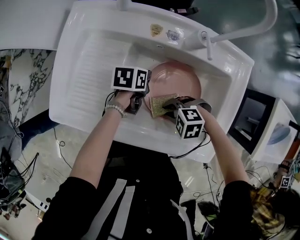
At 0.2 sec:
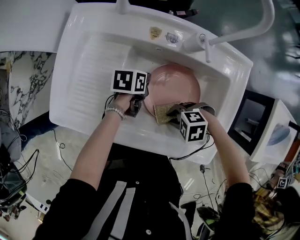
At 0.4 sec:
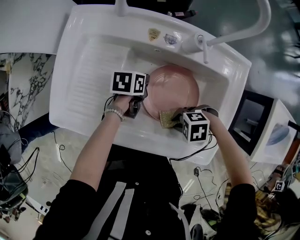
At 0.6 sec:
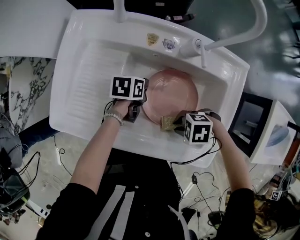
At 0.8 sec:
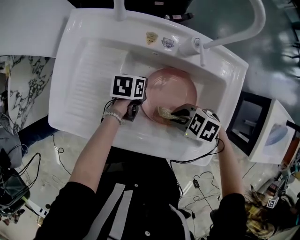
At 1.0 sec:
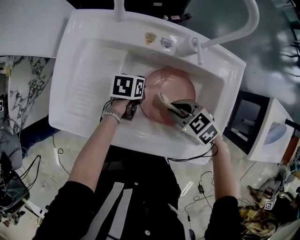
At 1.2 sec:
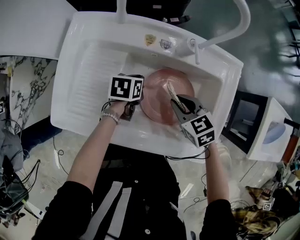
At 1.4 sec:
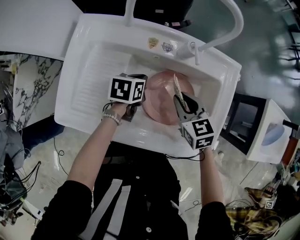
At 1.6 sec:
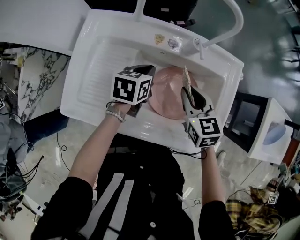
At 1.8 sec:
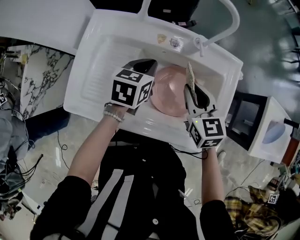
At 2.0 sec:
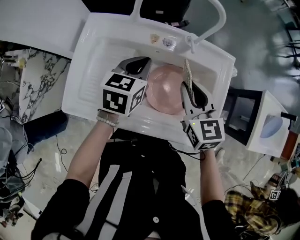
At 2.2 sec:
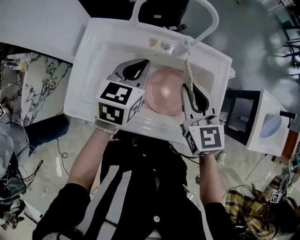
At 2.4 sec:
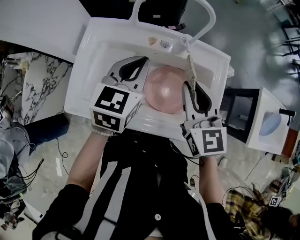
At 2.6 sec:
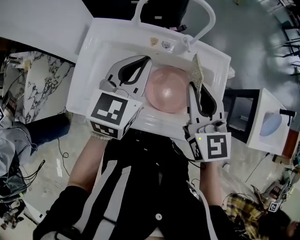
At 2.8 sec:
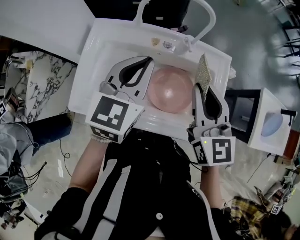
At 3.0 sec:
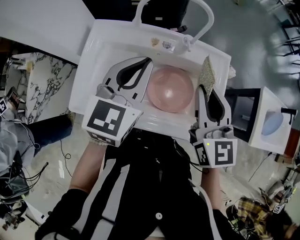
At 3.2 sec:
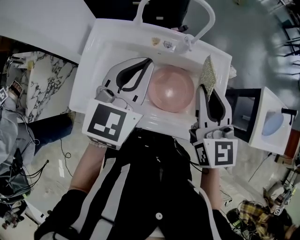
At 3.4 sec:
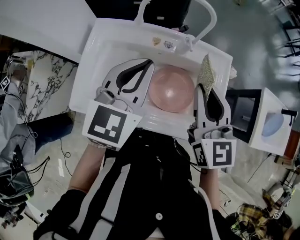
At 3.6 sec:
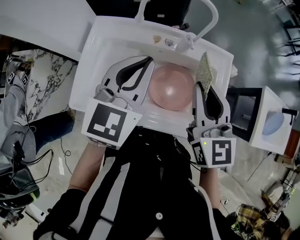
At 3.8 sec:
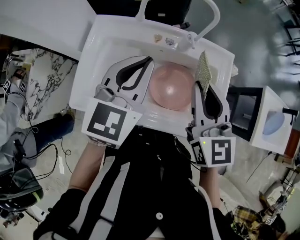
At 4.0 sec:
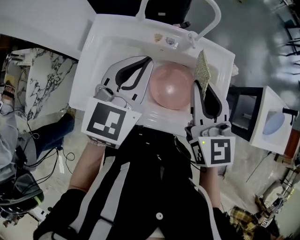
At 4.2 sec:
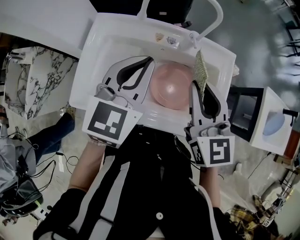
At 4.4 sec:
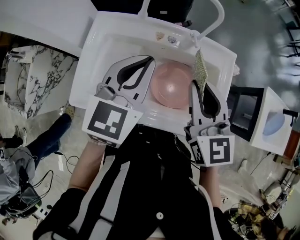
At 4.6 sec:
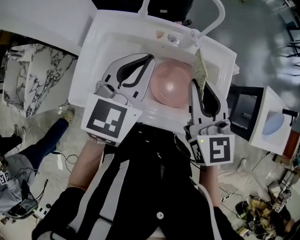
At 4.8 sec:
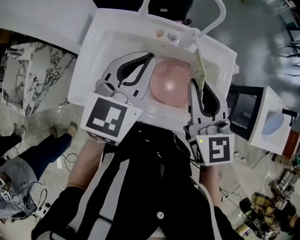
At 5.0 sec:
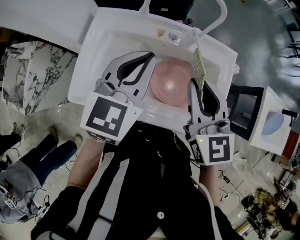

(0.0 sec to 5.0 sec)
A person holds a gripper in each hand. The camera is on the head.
0.0 sec - 1.6 sec: Both grippers travel together upward, about 15 cm. The right gripper changes its angle by about 80 degrees. The left gripper turns by some 20 degrees.
1.6 sec - 3.4 sec: The two grippers go roughly 25 cm upward. The left gripper turns by about 40 degrees; the right gripper swivels roughly 30 degrees.
3.4 sec - 5.0 sec: There are only small adjustments of the grippers.

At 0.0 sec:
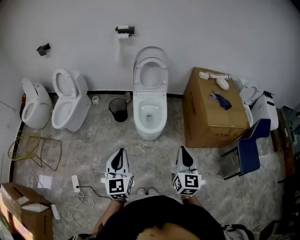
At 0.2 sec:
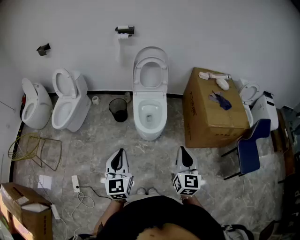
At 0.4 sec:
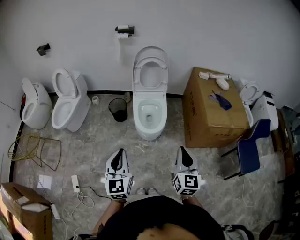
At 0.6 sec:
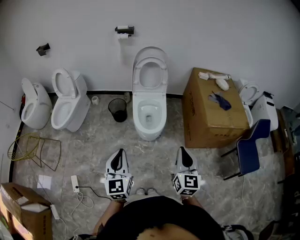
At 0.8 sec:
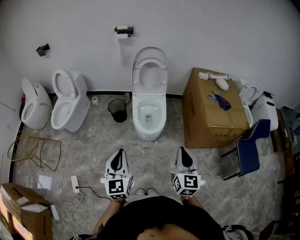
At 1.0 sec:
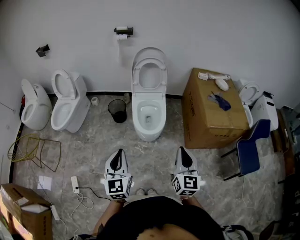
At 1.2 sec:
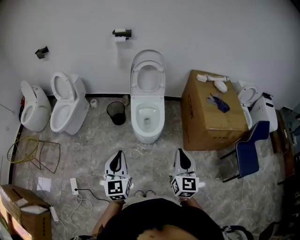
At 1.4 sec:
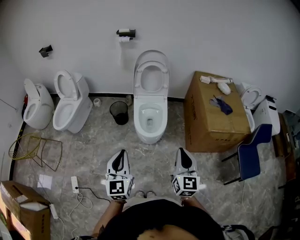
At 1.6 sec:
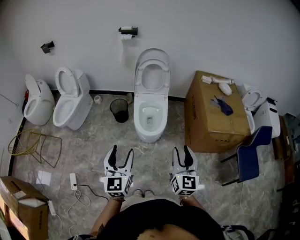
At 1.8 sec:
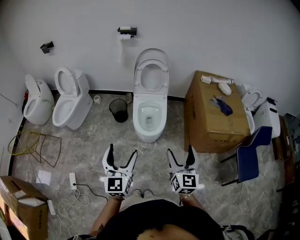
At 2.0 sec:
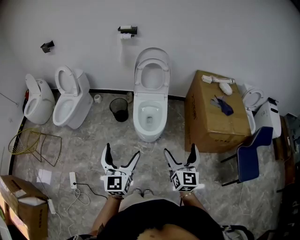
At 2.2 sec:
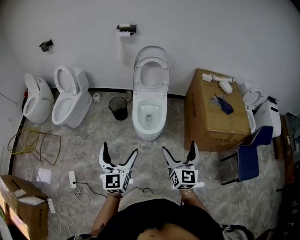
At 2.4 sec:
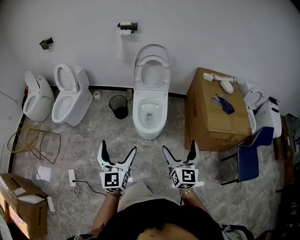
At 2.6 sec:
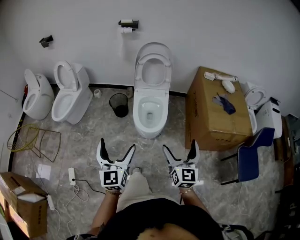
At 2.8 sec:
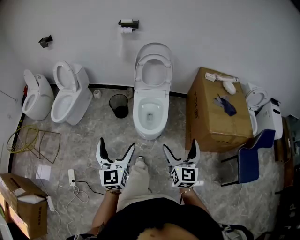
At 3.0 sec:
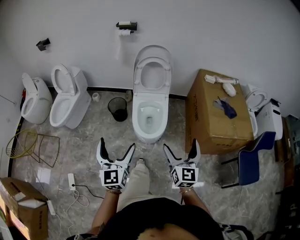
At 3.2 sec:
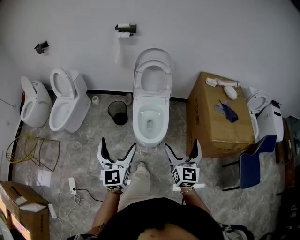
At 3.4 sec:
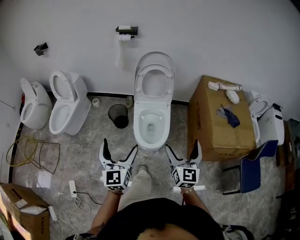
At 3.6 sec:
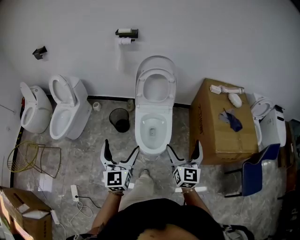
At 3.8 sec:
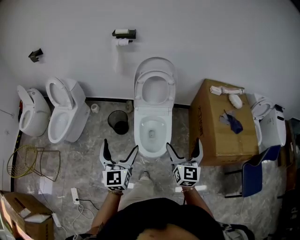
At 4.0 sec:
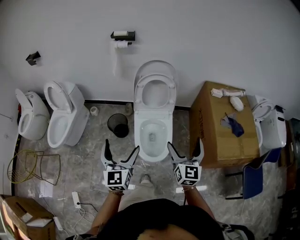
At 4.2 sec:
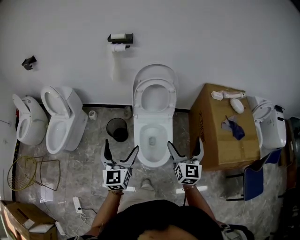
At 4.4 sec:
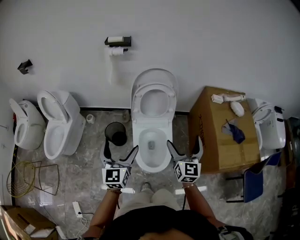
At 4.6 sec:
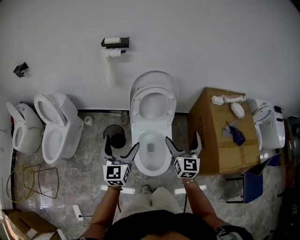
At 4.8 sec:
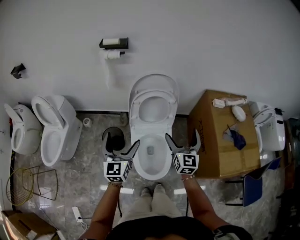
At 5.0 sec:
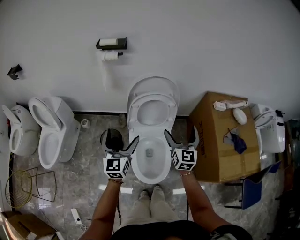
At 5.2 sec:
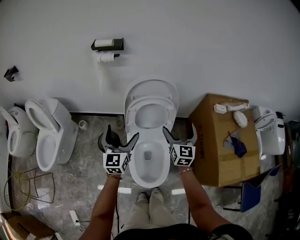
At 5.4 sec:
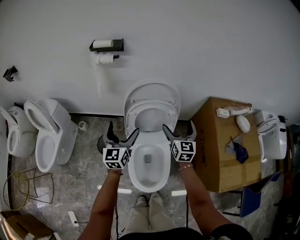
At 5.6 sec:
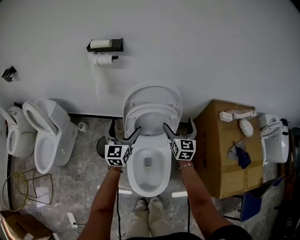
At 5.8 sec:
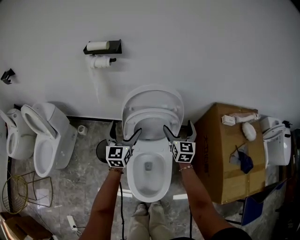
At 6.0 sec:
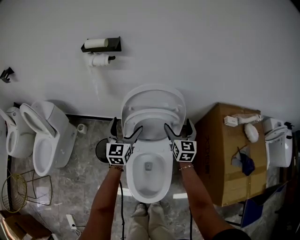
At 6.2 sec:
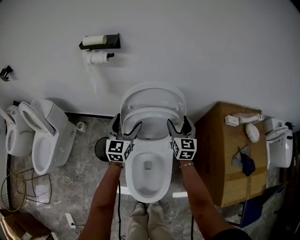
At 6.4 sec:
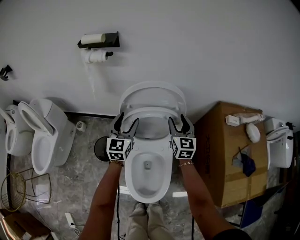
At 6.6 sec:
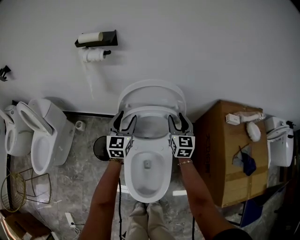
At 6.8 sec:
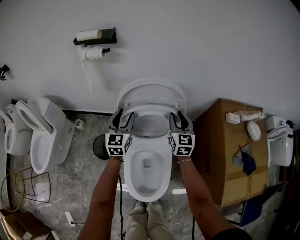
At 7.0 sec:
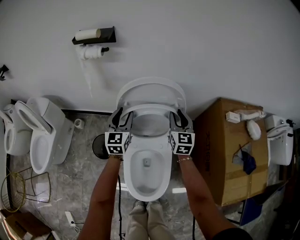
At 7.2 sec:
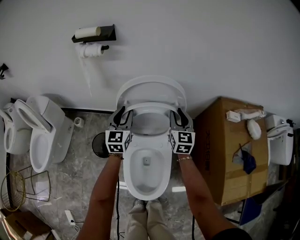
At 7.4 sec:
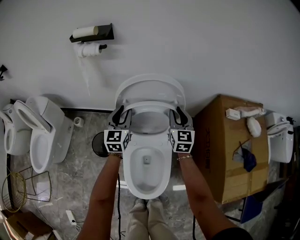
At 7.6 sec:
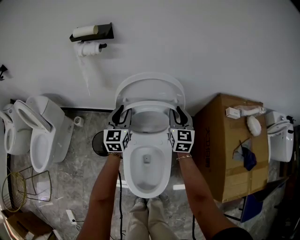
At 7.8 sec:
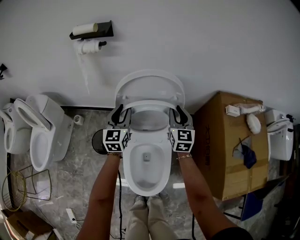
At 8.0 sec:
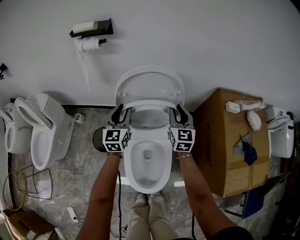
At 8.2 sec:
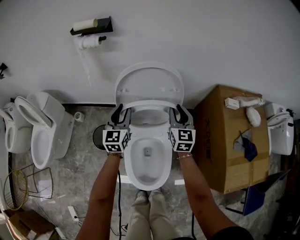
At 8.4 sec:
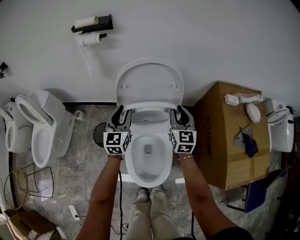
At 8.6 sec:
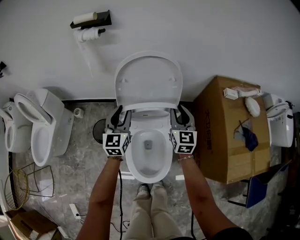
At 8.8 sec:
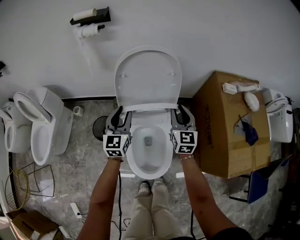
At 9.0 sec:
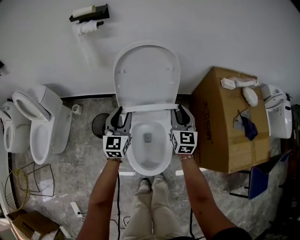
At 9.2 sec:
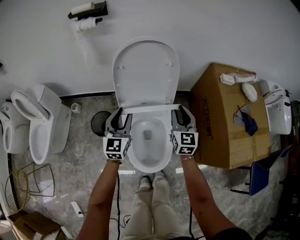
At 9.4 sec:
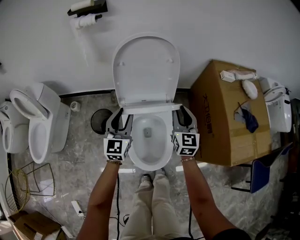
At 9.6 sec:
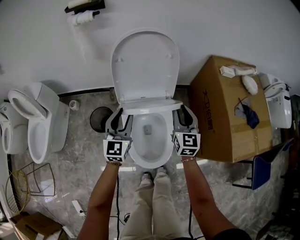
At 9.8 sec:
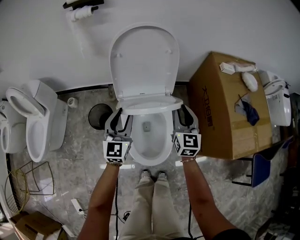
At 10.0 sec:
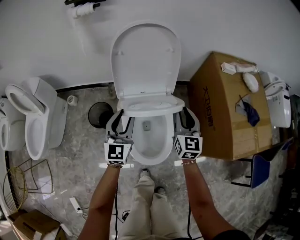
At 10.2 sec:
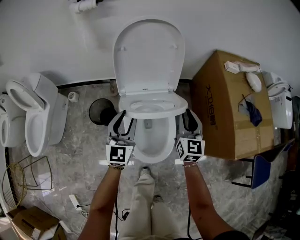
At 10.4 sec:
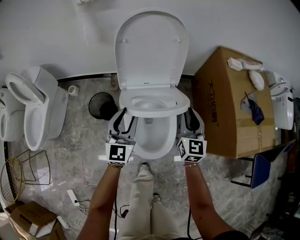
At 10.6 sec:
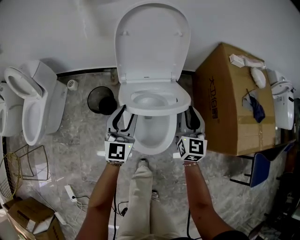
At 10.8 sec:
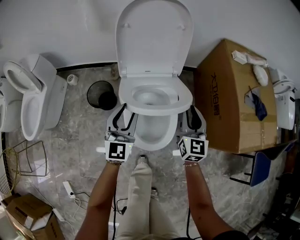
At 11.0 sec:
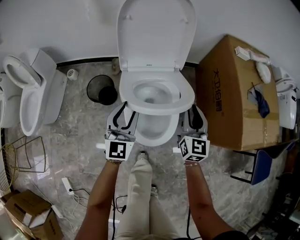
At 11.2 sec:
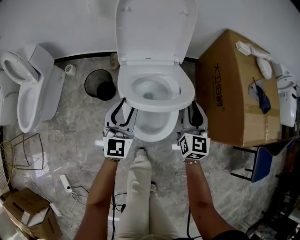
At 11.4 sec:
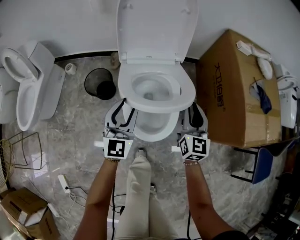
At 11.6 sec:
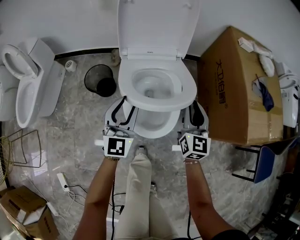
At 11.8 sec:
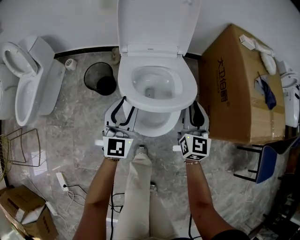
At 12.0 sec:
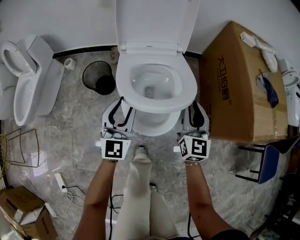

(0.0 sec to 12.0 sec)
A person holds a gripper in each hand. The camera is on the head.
0.0 sec - 1.6 sec: The left gripper opens.
1.6 sec - 3.0 sec: The grippers both shift forward by roughly 10 cm. The right gripper opens up. Meanwhile the left gripper opens.
3.0 sec - 4.4 sec: Both grippers move forward, approximately 30 cm.
4.4 sec - 6.0 sec: The two grippers go approximately 40 cm forward.
6.0 sec - 7.6 sec: The left gripper ends up roughly 5 cm from where it was, and closes; the right gripper closes its fingers.
7.6 sec - 9.0 sec: The grippers both shift backward by about 15 cm.
9.0 sec - 10.4 sec: The left gripper is displaced backward by roughly 10 cm; the right gripper travels backward and downward by approximately 10 cm.
10.4 sec - 12.0 sec: Both grippers travel together backward and downward, roughly 15 cm.

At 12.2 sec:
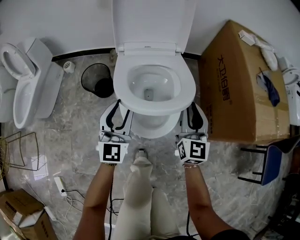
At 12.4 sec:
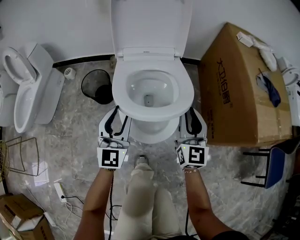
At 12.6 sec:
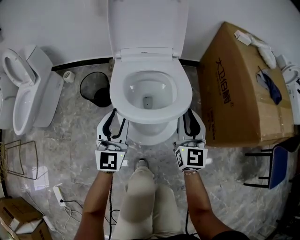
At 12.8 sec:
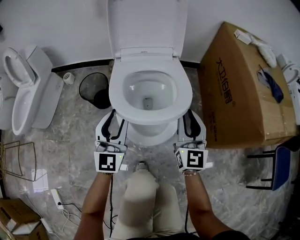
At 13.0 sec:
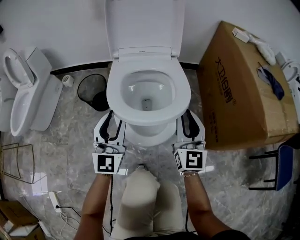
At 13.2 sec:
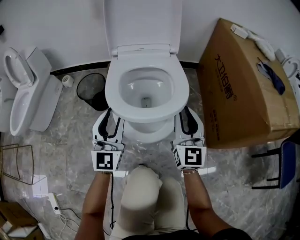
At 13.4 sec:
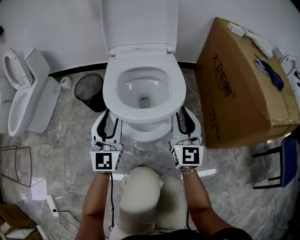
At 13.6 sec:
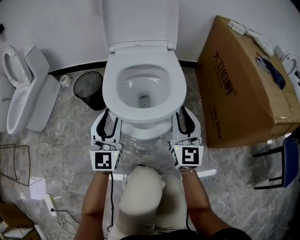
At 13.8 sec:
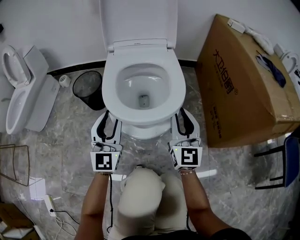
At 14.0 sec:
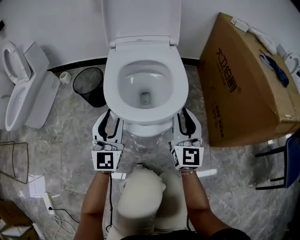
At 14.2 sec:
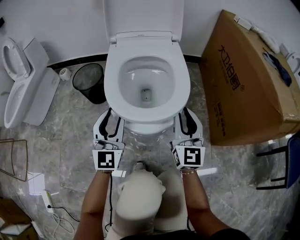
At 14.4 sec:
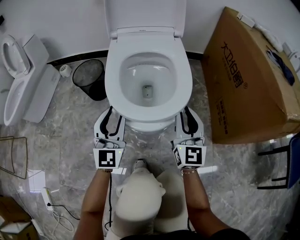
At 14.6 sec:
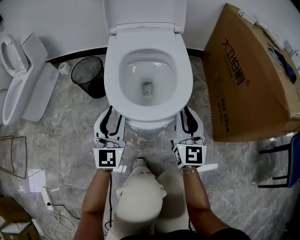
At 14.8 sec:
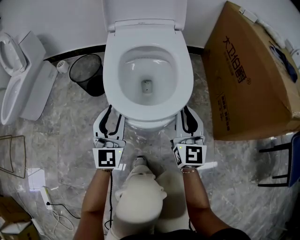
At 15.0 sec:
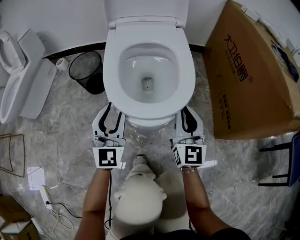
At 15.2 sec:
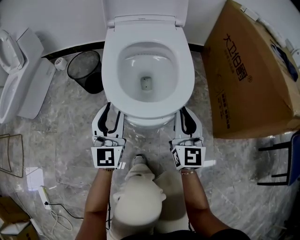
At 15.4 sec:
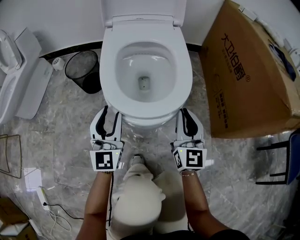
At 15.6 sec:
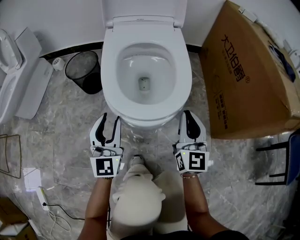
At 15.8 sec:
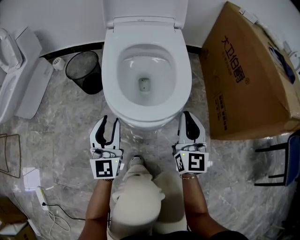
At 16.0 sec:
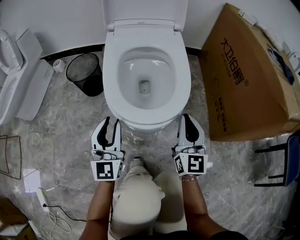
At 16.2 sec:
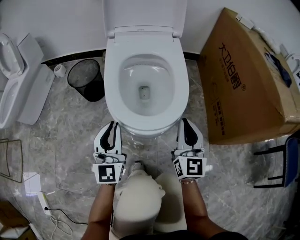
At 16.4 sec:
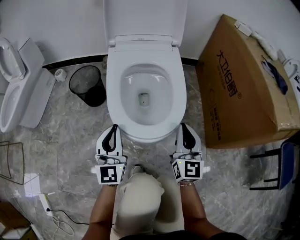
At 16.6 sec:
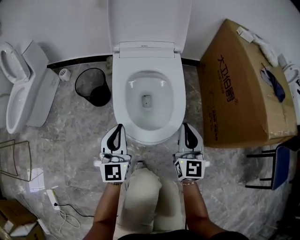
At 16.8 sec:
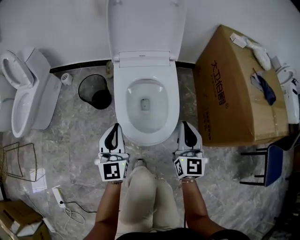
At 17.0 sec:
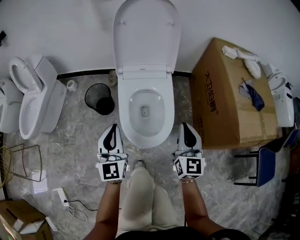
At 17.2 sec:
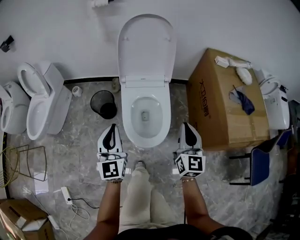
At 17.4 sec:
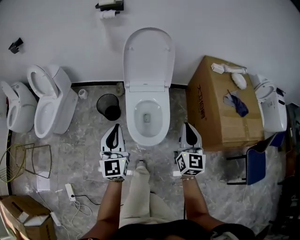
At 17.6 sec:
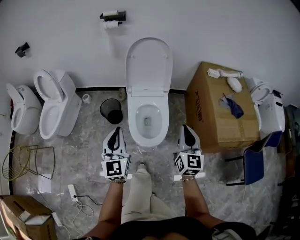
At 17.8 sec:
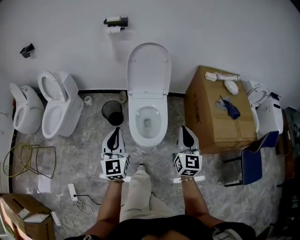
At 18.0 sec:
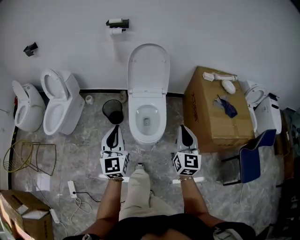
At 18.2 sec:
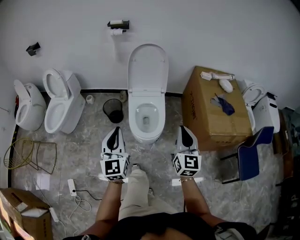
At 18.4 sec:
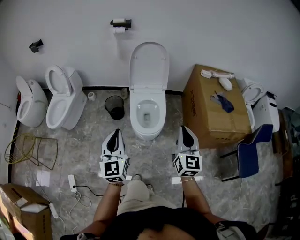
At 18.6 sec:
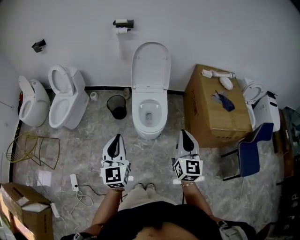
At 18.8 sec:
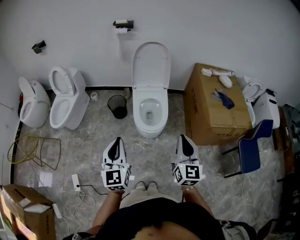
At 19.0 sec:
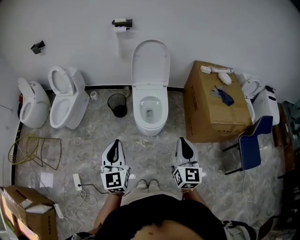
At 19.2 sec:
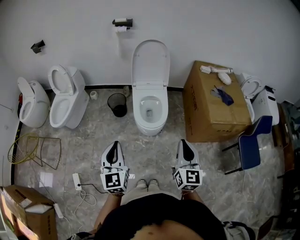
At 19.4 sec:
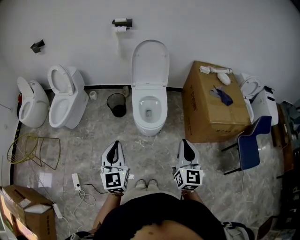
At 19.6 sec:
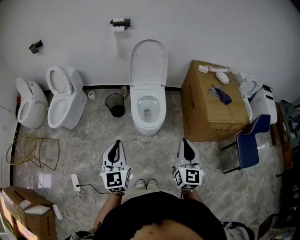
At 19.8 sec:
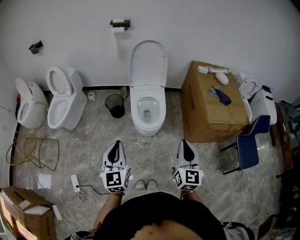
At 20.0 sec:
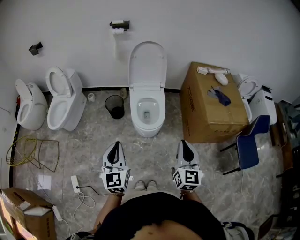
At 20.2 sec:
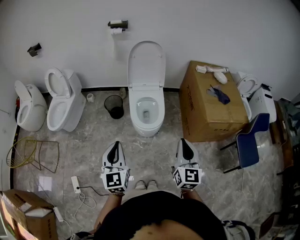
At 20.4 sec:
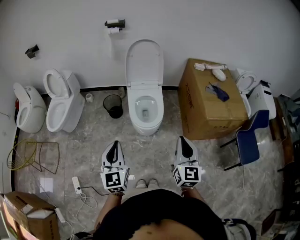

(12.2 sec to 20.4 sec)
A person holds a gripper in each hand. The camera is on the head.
12.2 sec - 13.8 sec: Both grippers move downward and backward, some 15 cm.
13.8 sec - 15.4 sec: Both grippers move downward, some 10 cm.
15.4 sec - 17.2 sec: Both grippers travel together upward, about 40 cm.
17.2 sec - 18.8 sec: The two grippers go approximately 35 cm backward and upward.
18.8 sec - 20.4 sec: There are only small adjustments of the grippers.
